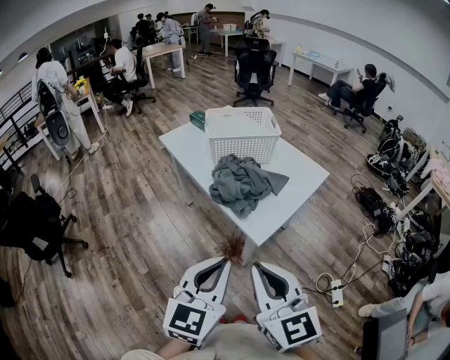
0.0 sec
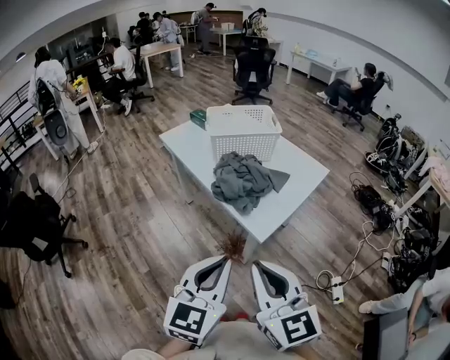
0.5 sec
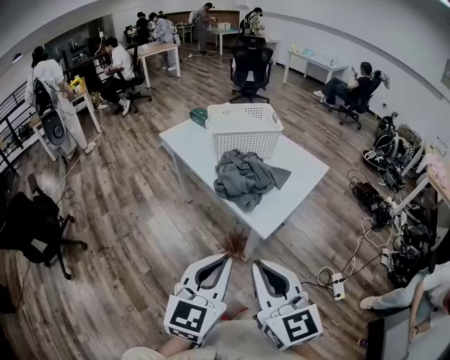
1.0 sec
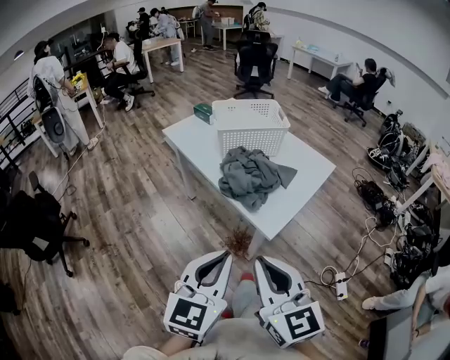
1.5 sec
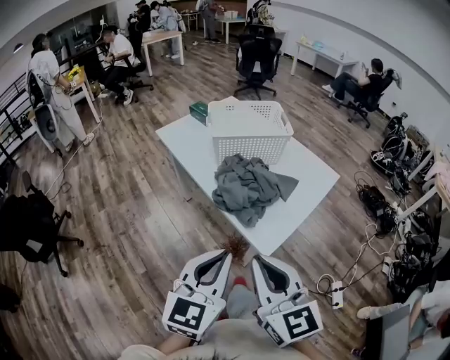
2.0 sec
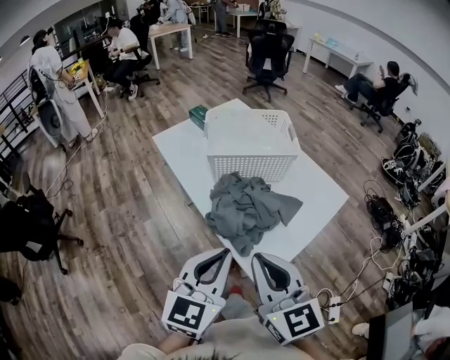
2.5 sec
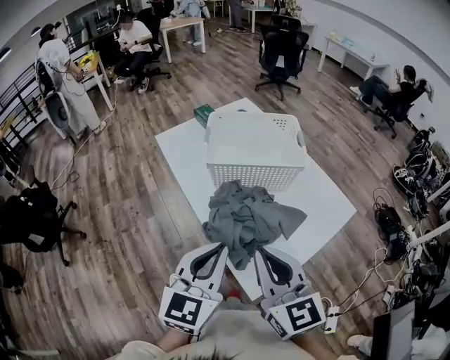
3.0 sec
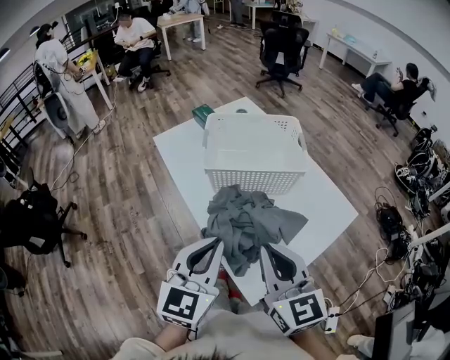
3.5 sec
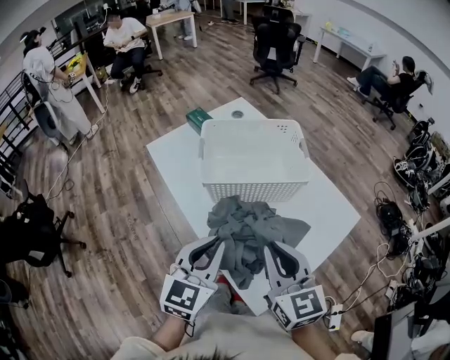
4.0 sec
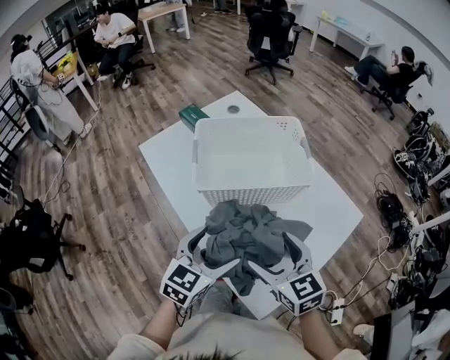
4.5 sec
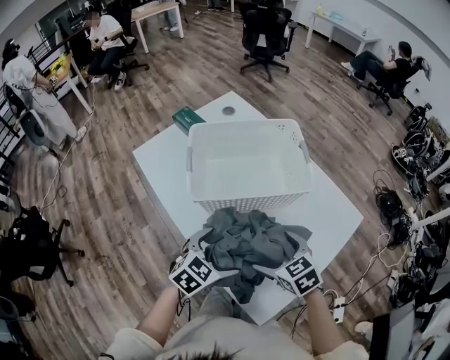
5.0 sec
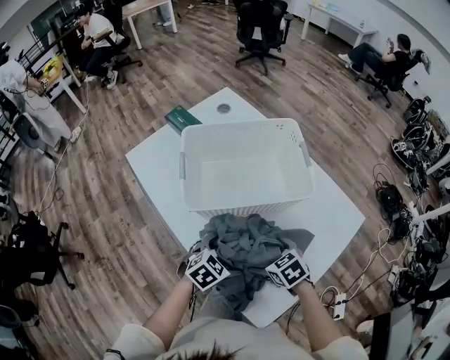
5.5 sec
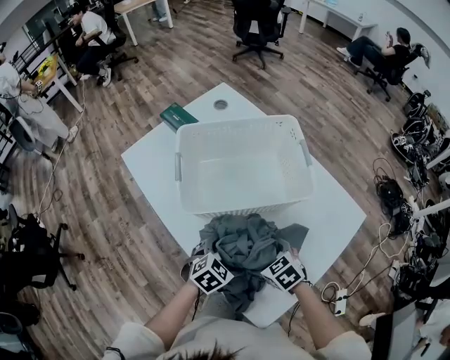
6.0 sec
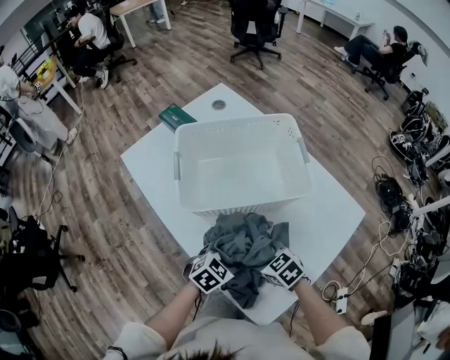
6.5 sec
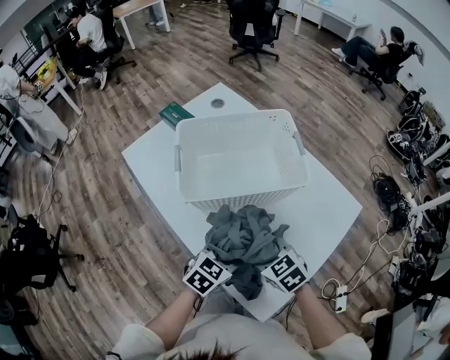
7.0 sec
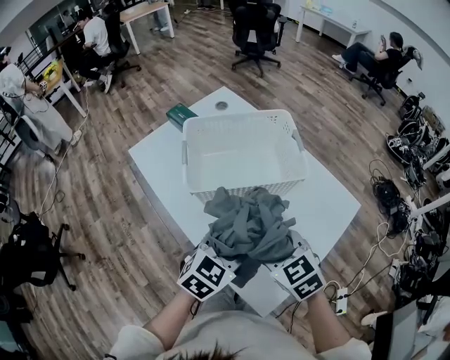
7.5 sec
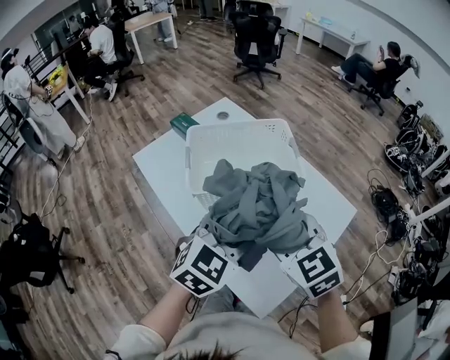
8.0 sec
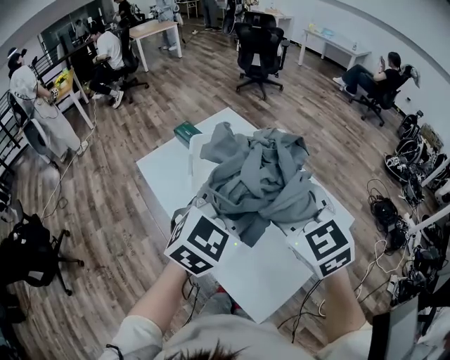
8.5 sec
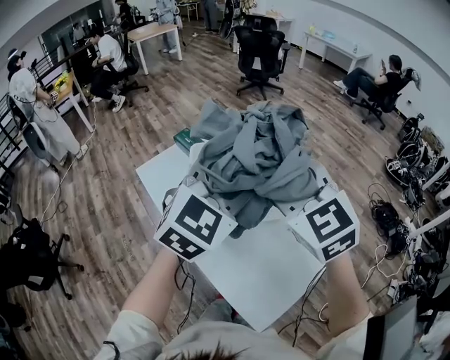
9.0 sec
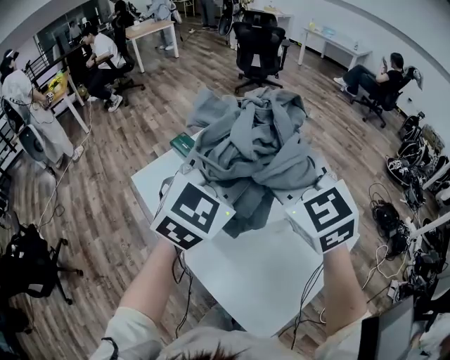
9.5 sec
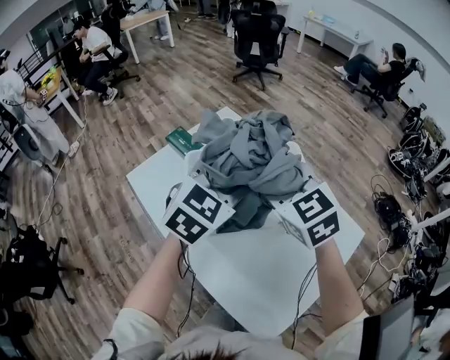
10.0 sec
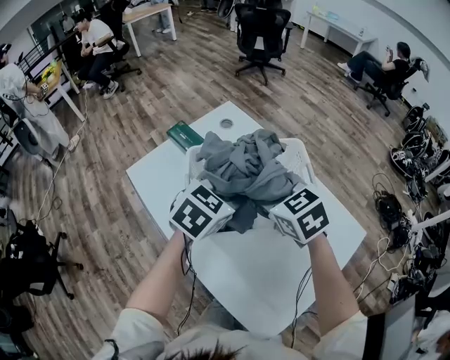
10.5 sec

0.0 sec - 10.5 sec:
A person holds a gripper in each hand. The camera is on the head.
0.0 sec - 2.0 sec: Both grippers travel together forward, roughly 10 cm.
2.0 sec - 4.0 sec: Both grippers move forward, approximately 25 cm.
4.0 sec - 6.5 sec: Both grippers travel together downward, roughly 25 cm. The left gripper points its fingers approximately 30 degrees further downward, and opens its fingers, while the right gripper points its fingers about 40 degrees further downward, and opens.
6.5 sec - 8.5 sec: Both grippers move upward, about 35 cm. The left gripper swivels approximately 40 degrees. The right gripper rotates about 40 degrees.
8.5 sec - 10.5 sec: The left gripper travels forward, downward and to the left by about 20 cm, and swivels about 20 degrees; the right gripper moves forward and downward, approximately 20 cm, and swivels some 20 degrees.

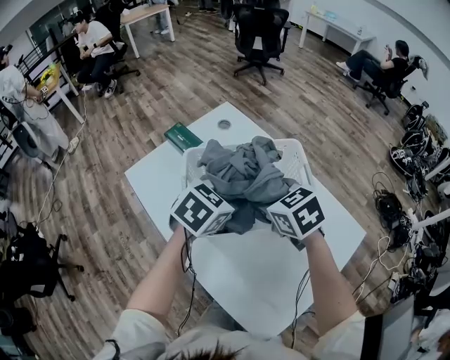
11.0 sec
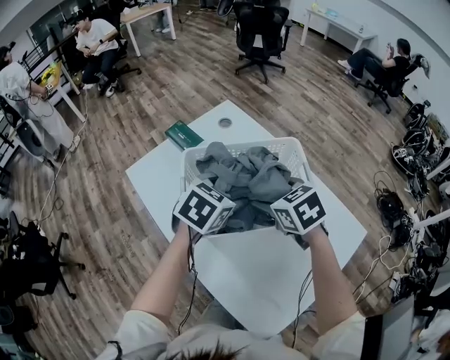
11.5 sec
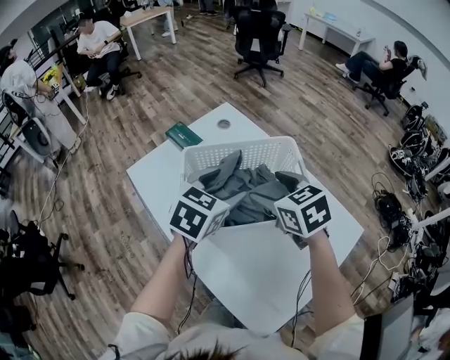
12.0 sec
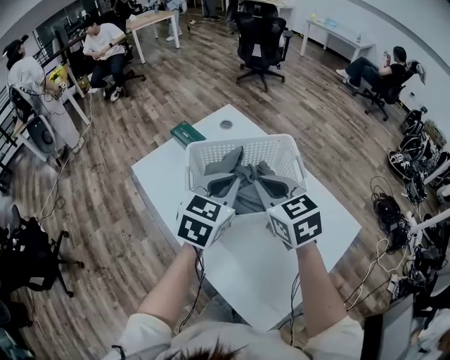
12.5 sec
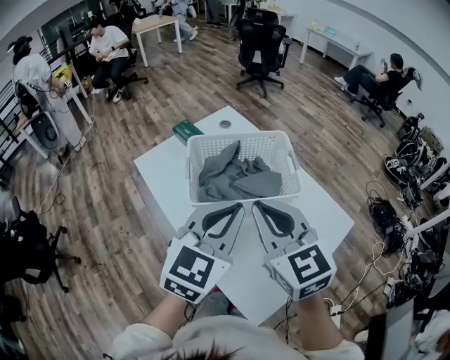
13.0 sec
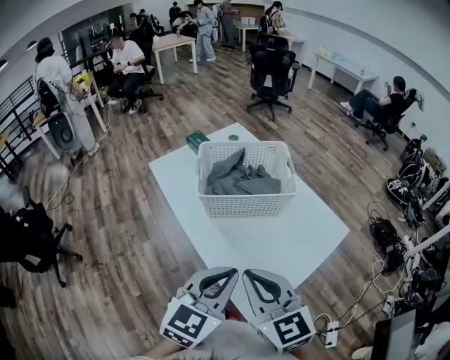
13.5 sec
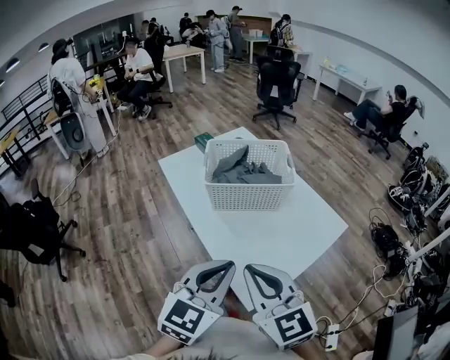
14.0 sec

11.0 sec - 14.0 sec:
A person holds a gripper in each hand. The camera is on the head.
11.0 sec - 12.5 sec: The grippers both shift upward by approximately 5 cm. The right gripper closes up; the left gripper rotates roughly 20 degrees, and closes its fingers.
12.5 sec - 14.0 sec: Both grippers travel together backward, about 35 cm.

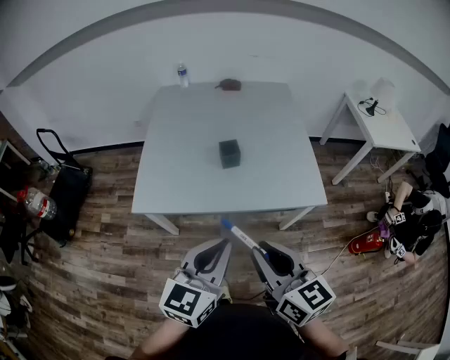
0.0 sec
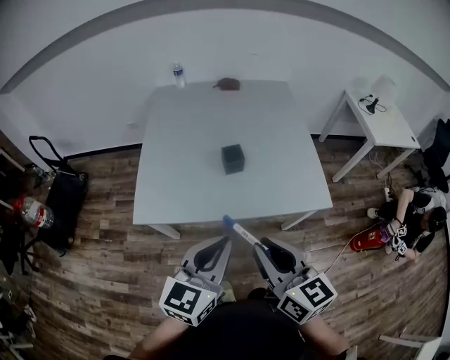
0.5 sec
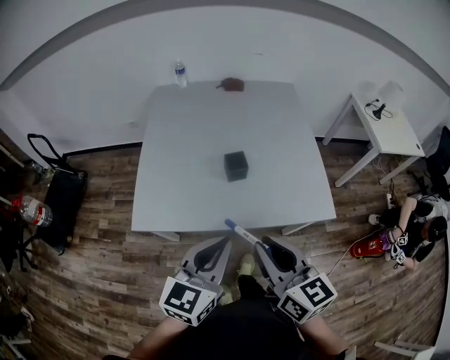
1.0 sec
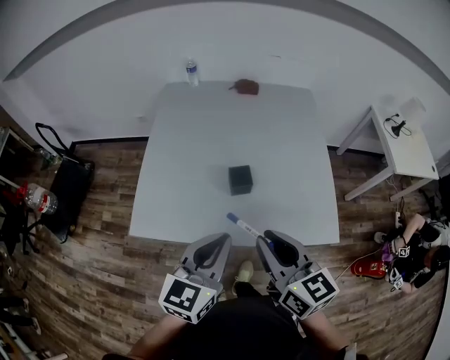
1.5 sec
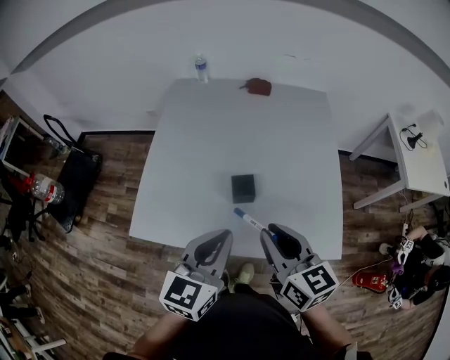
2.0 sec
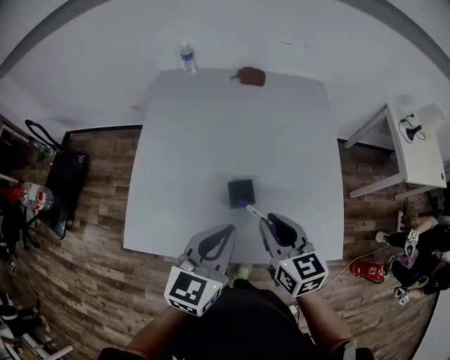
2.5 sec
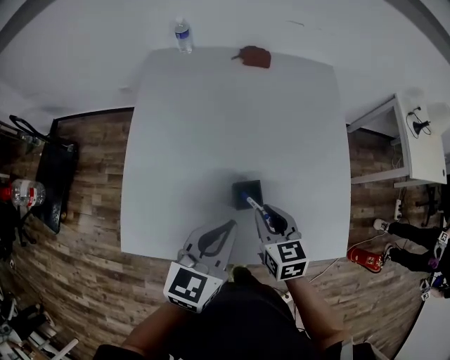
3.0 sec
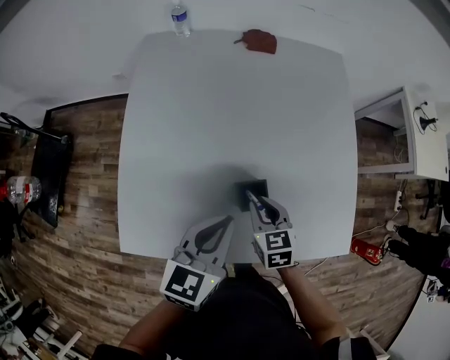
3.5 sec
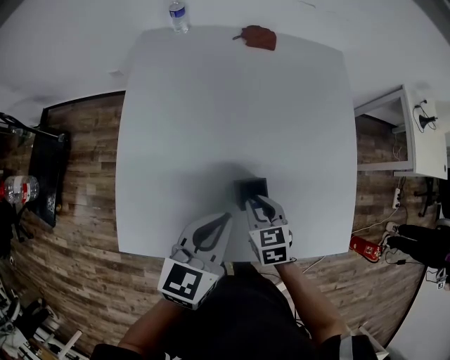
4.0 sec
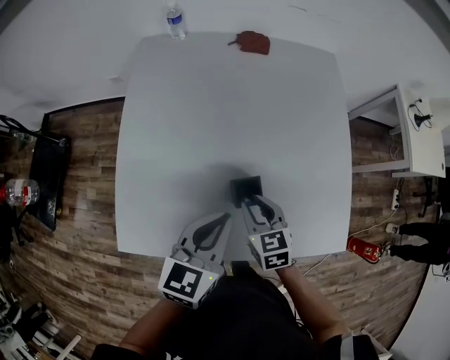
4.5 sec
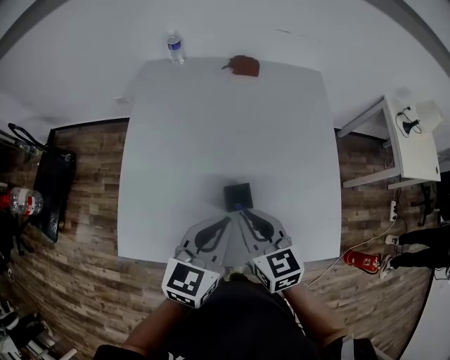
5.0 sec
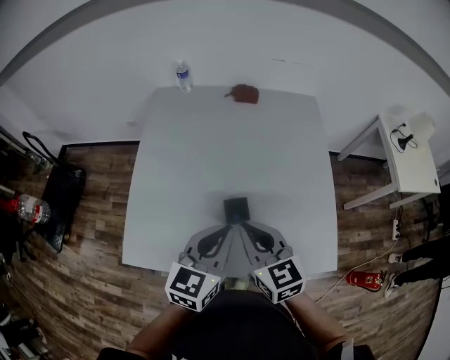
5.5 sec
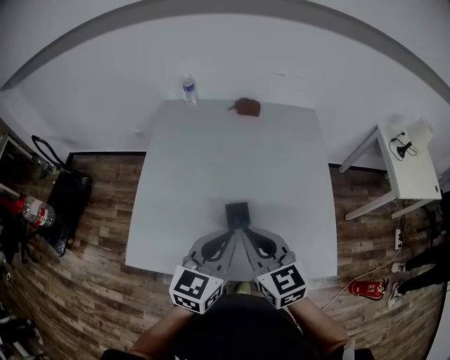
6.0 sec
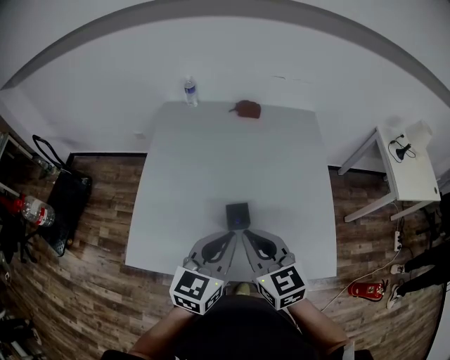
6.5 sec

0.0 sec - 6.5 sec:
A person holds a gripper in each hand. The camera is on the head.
0.0 sec - 2.0 sec: Both grippers travel together forward, about 25 cm.
2.0 sec - 4.5 sec: The left gripper shifts some 15 cm forward and downward. The right gripper travels downward and forward by roughly 25 cm, and changes its angle by some 30 degrees.
4.5 sec - 6.5 sec: The right gripper travels upward by approximately 20 cm, and changes its angle by roughly 20 degrees. Meanwhile the left gripper shifts roughly 10 cm upward and backward.

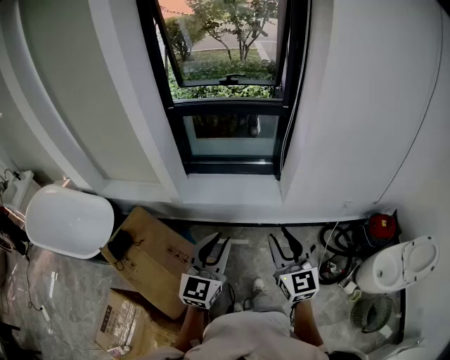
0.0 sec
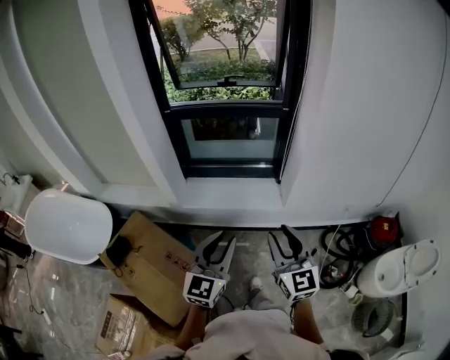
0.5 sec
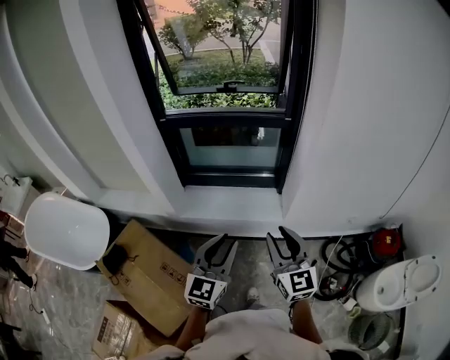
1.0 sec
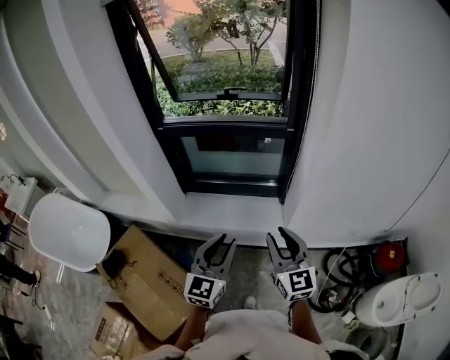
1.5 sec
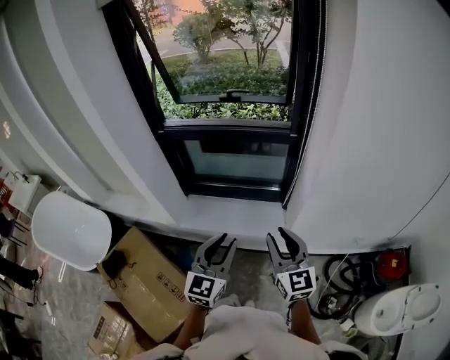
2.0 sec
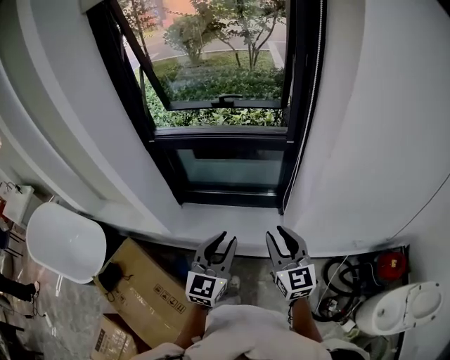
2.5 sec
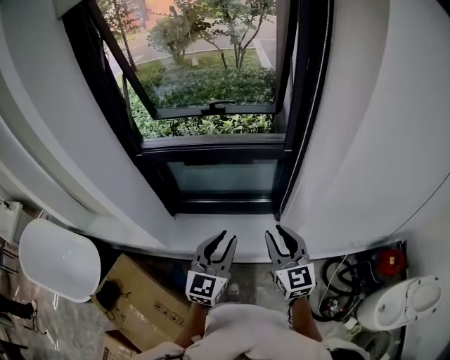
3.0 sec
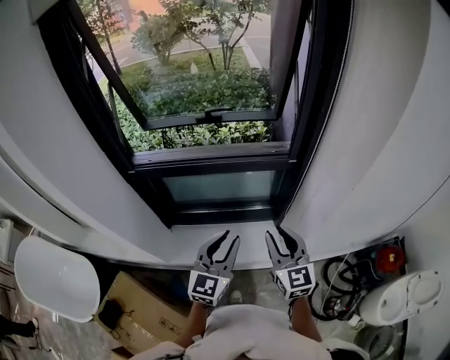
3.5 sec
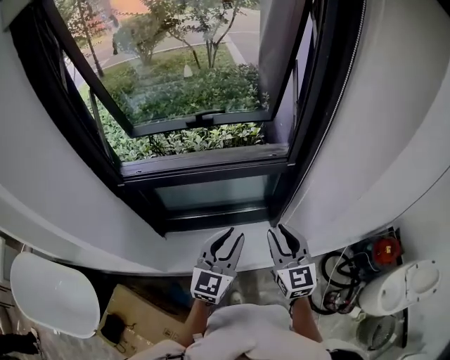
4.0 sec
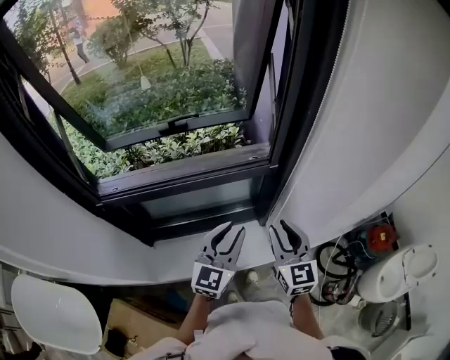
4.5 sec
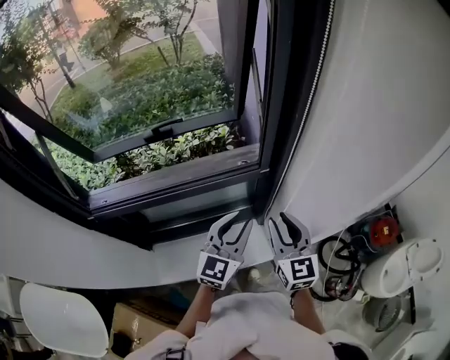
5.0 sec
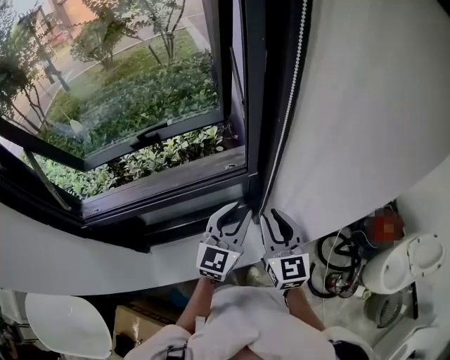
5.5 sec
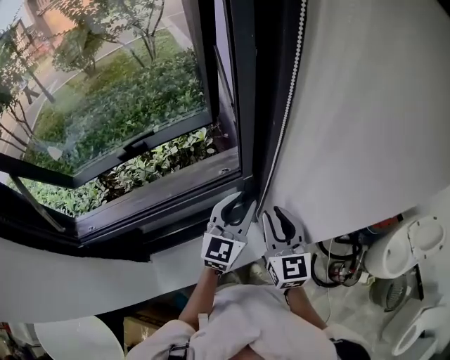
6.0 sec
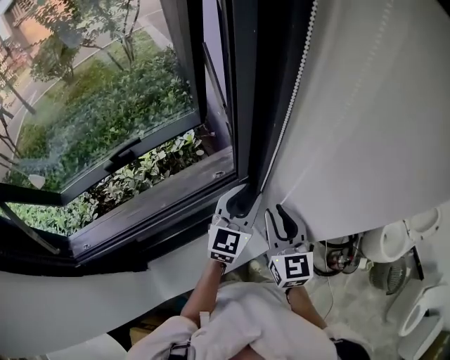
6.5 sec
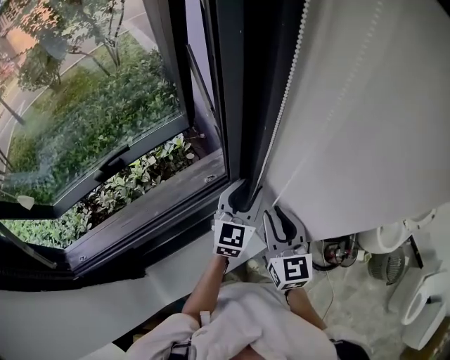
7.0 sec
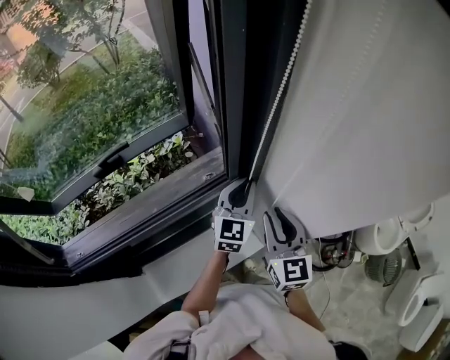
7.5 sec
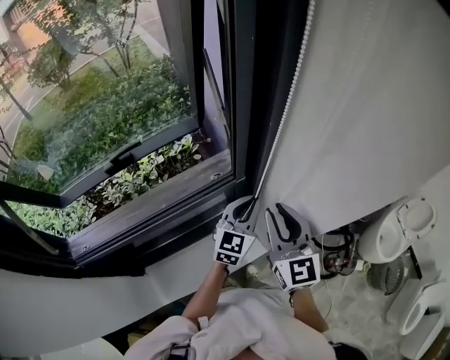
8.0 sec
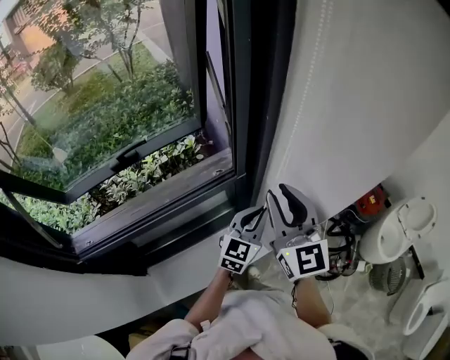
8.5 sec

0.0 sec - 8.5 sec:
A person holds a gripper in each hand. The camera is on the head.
0.0 sec - 2.0 sec: The left gripper shifts some 25 cm forward and to the right; the right gripper goes roughly 25 cm forward.
2.0 sec - 4.0 sec: The two grippers go some 25 cm forward.
4.0 sec - 6.5 sec: The right gripper is displaced forward and to the right by roughly 20 cm, and changes its angle by approximately 30 degrees. Meanwhile the left gripper heads forward and to the right, covering roughly 30 cm, and turns by approximately 20 degrees.
6.5 sec - 8.5 sec: The right gripper travels upward by some 10 cm. The left gripper travels backward by roughly 5 cm, and closes up.
